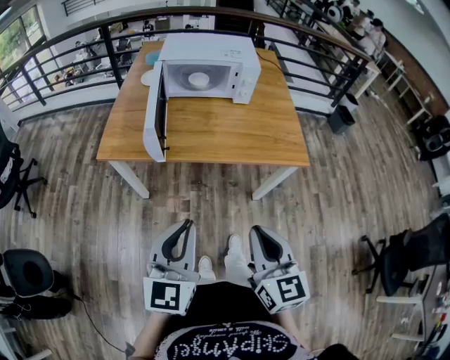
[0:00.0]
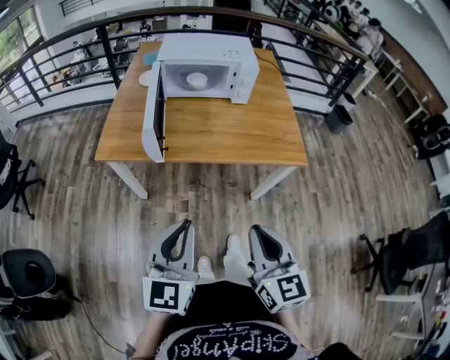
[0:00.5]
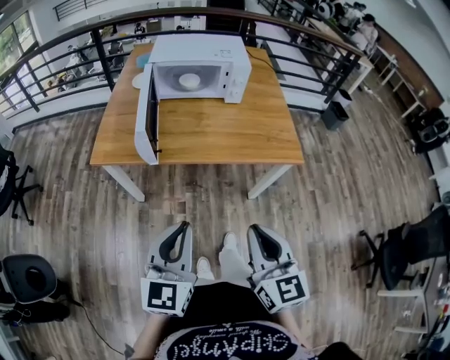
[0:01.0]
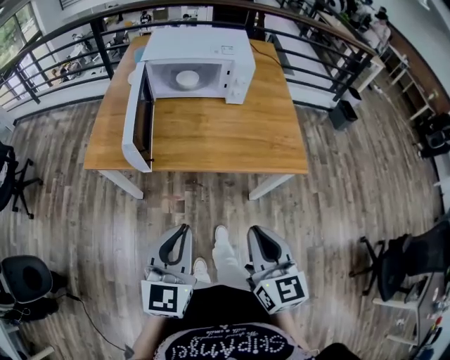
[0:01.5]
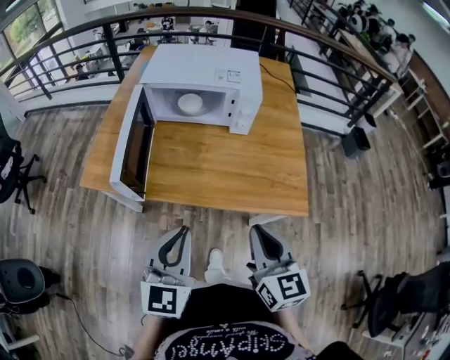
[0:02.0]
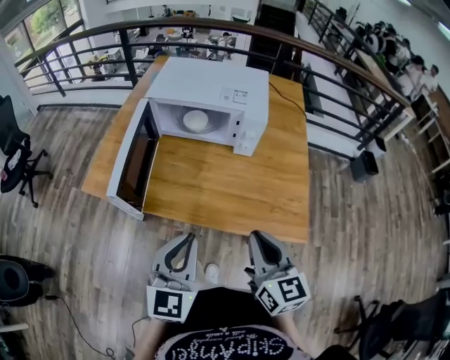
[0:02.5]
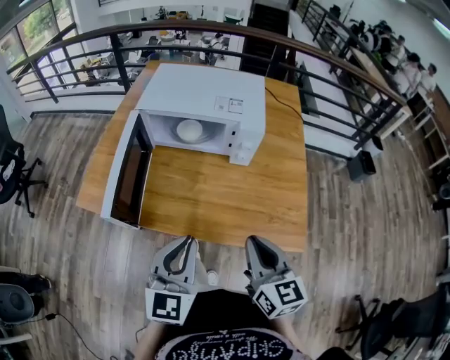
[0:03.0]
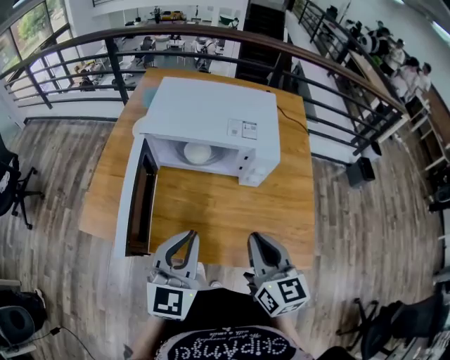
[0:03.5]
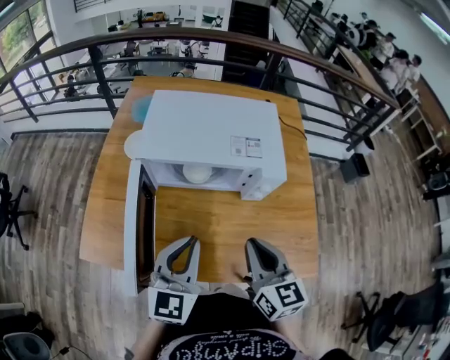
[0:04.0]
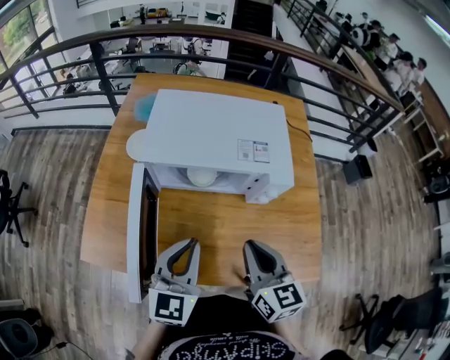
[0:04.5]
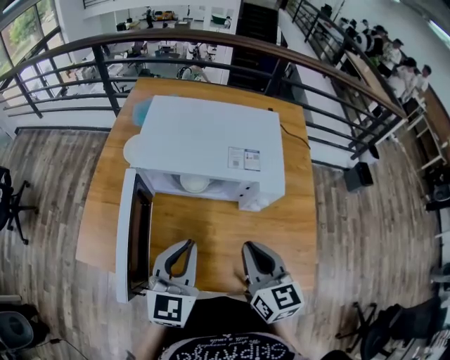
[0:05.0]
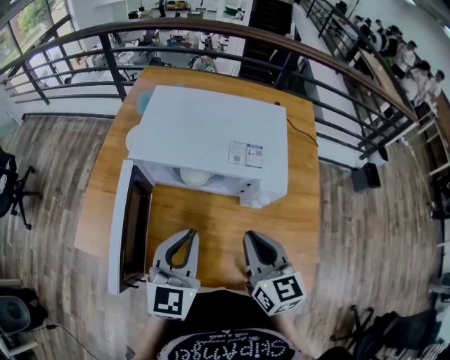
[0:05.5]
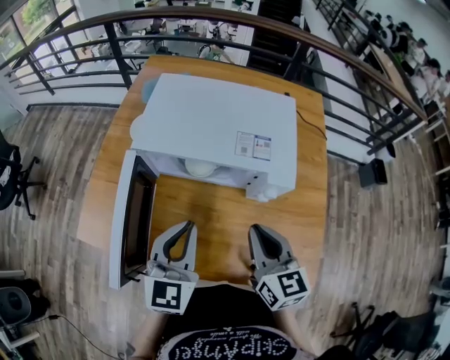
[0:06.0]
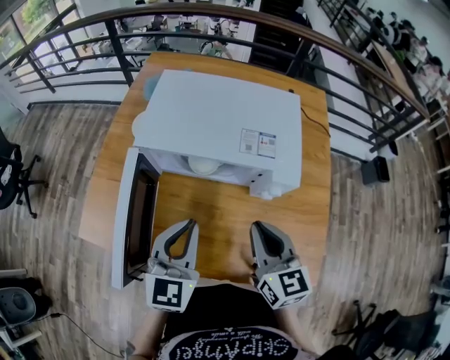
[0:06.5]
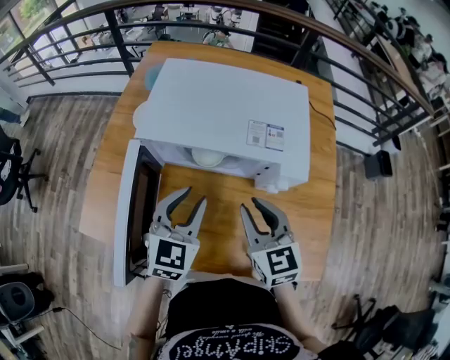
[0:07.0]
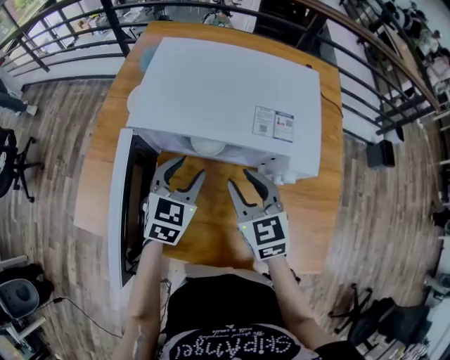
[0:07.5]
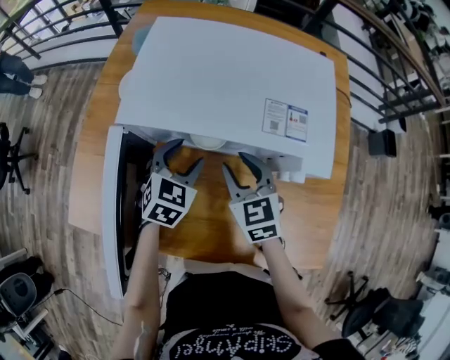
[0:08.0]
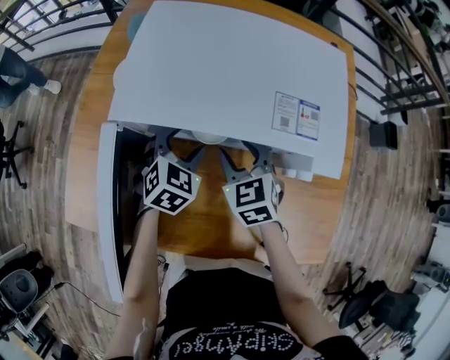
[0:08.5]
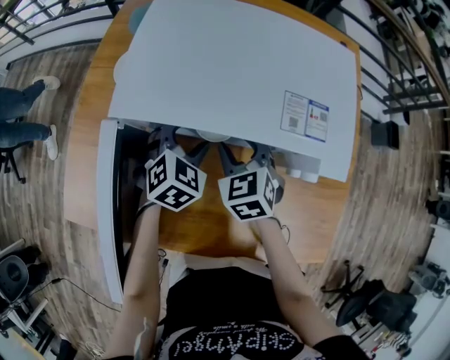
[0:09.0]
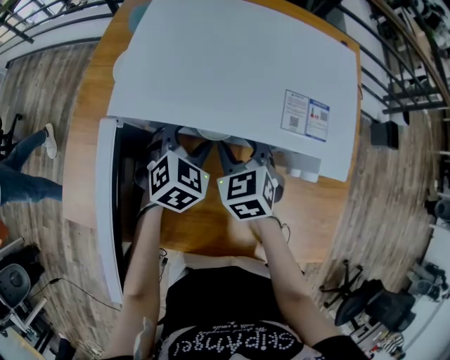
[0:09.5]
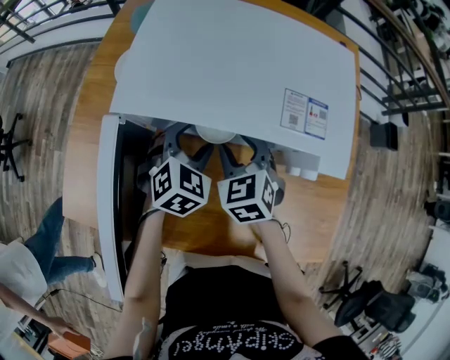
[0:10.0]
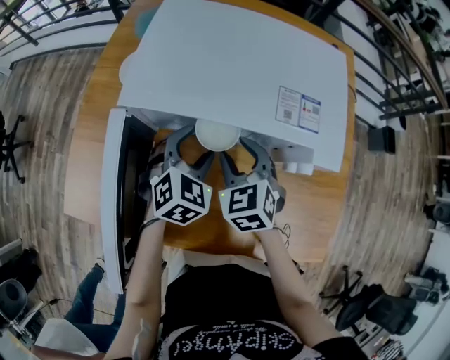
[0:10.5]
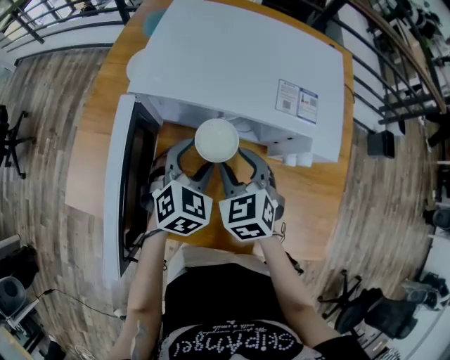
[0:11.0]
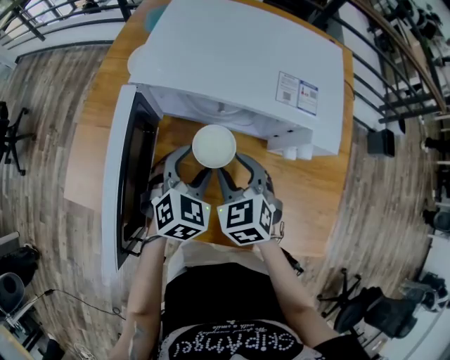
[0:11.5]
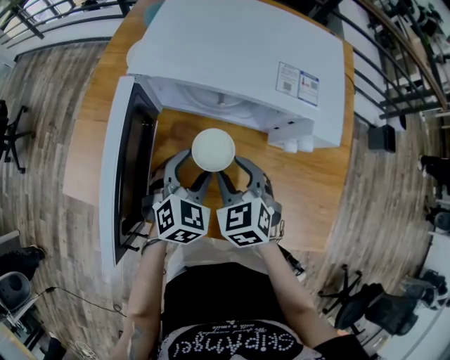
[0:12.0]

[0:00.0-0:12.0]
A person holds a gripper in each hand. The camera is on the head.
0:00.0 to 0:02.0: The right gripper travels forward by approximately 20 cm, while the left gripper goes some 20 cm forward and to the right.
0:02.0 to 0:04.0: Both grippers travel together forward, about 25 cm.
0:04.0 to 0:06.0: The right gripper heads forward, covering about 5 cm.
0:06.0 to 0:08.0: The left gripper goes about 25 cm downward and forward, rotates roughly 30 degrees, and opens. The right gripper travels forward, downward and to the left by approximately 20 cm, rotates some 20 degrees, and opens.
0:08.0 to 0:10.0: The grippers make only small movements.
0:10.0 to 0:12.0: The two grippers go about 15 cm backward.

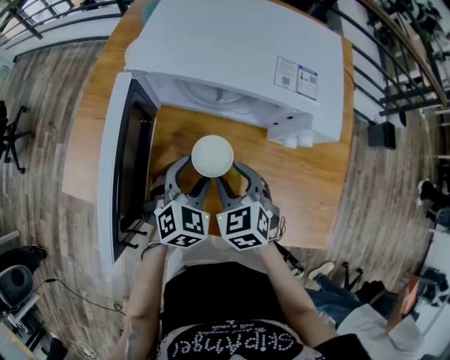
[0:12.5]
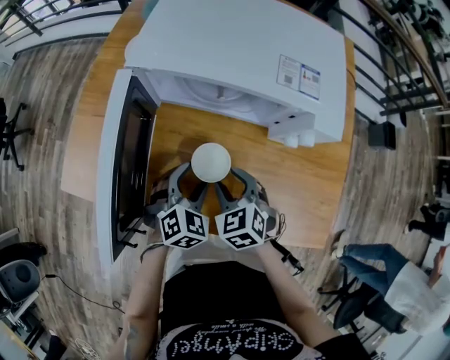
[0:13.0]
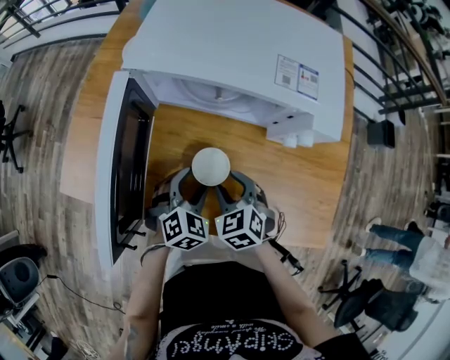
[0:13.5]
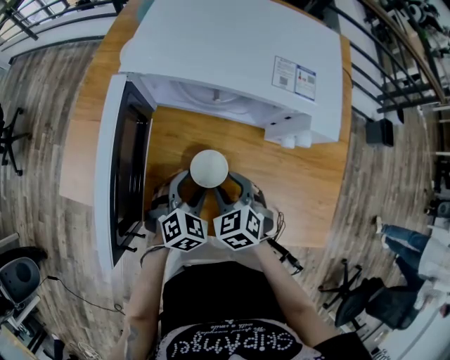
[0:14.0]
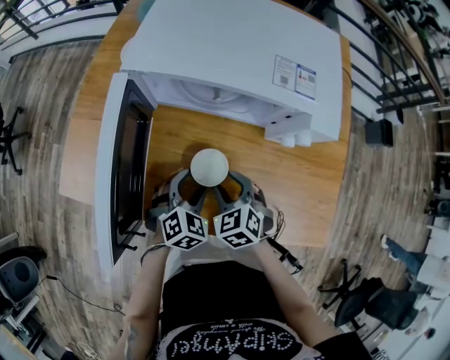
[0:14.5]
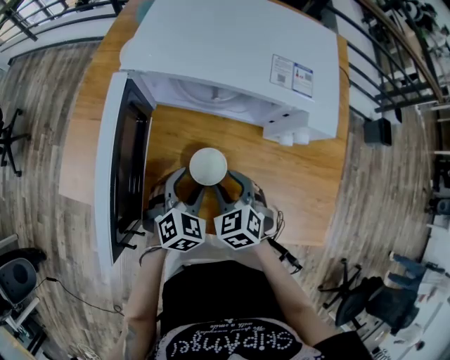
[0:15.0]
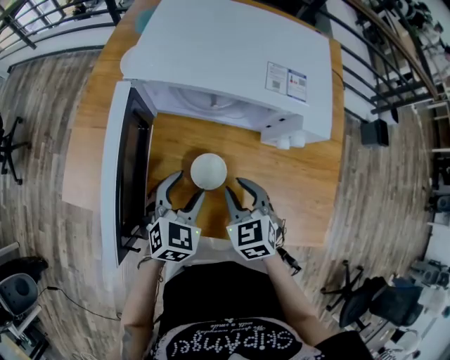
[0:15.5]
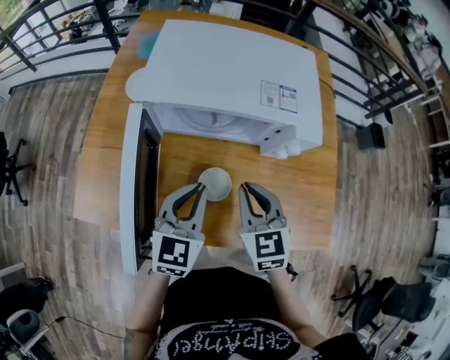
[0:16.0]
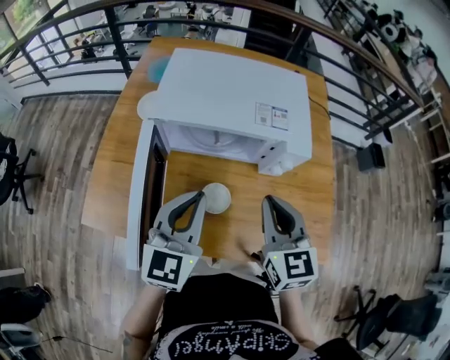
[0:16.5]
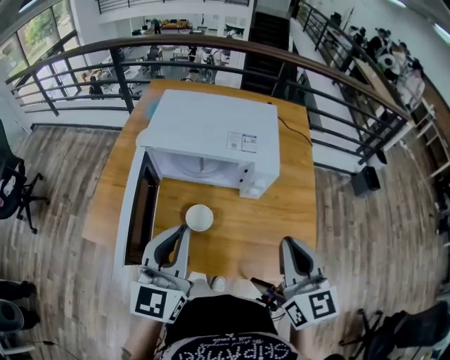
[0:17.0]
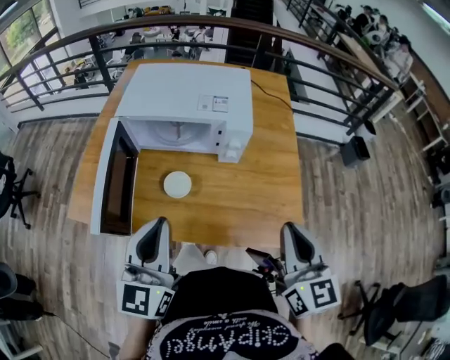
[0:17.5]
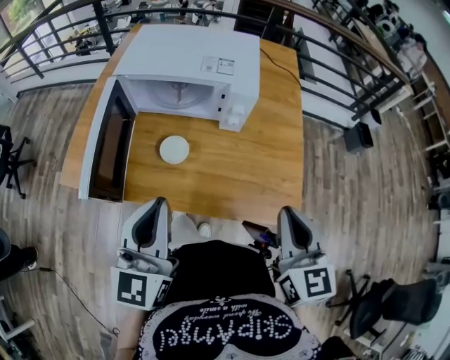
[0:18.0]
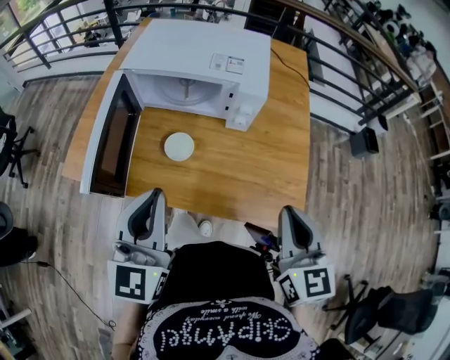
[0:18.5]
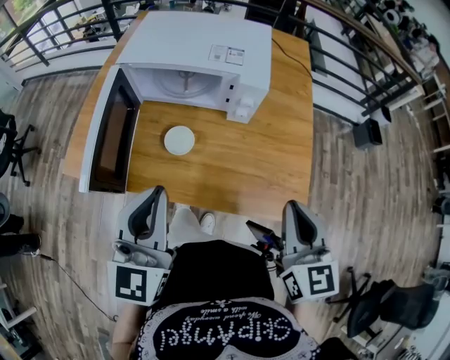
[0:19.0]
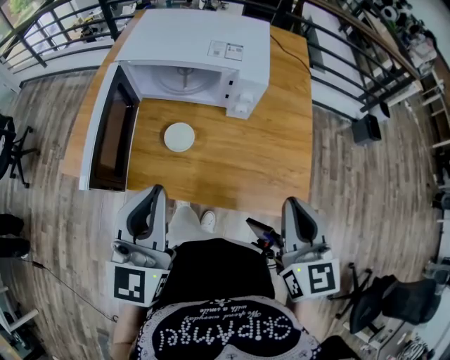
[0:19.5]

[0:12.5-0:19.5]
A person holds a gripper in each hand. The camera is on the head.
0:12.5 to 0:14.5: Both grippers move downward, about 5 cm.
0:14.5 to 0:16.0: Both grippers move upward, some 15 cm. The left gripper points its fingers about 30 degrees further upward, and closes, while the right gripper turns by some 30 degrees, and closes.
0:16.0 to 0:17.5: The left gripper goes roughly 20 cm upward and backward, and swivels some 20 degrees. Meanwhile the right gripper heads to the right, backward and upward, covering roughly 30 cm, and changes its angle by some 30 degrees.
0:17.5 to 0:19.5: The grippers move only a little.

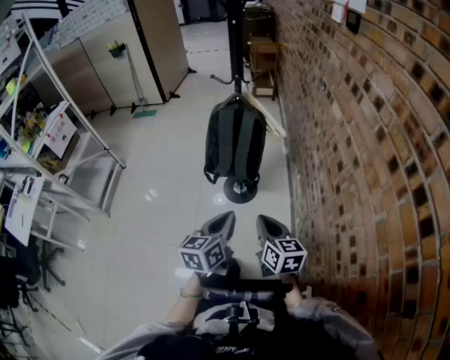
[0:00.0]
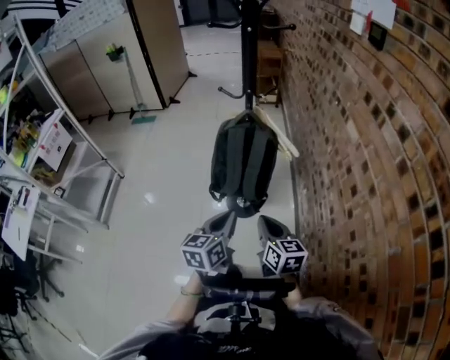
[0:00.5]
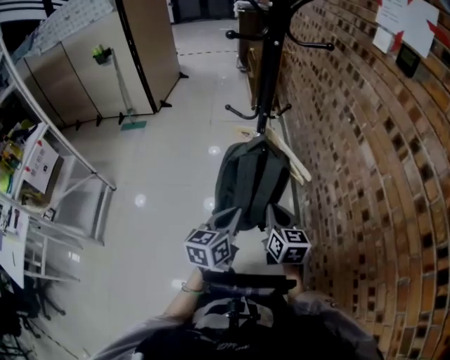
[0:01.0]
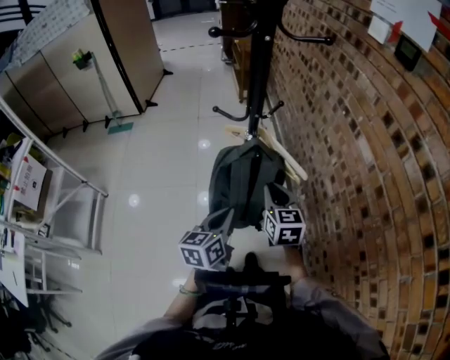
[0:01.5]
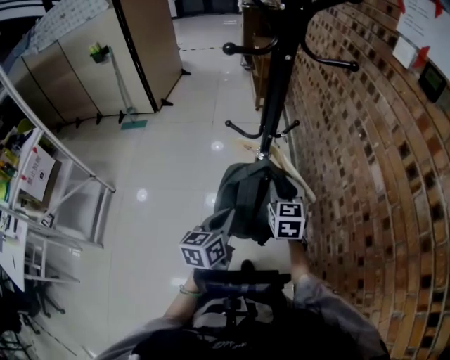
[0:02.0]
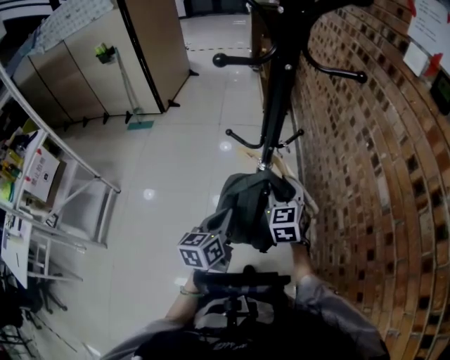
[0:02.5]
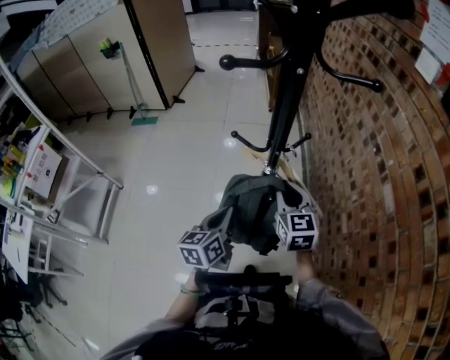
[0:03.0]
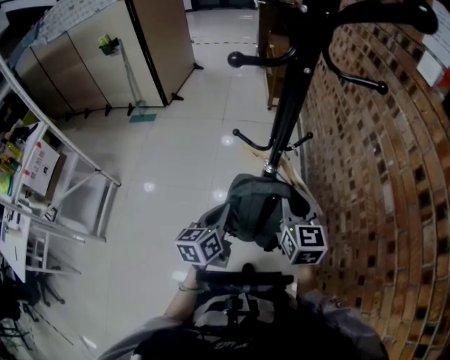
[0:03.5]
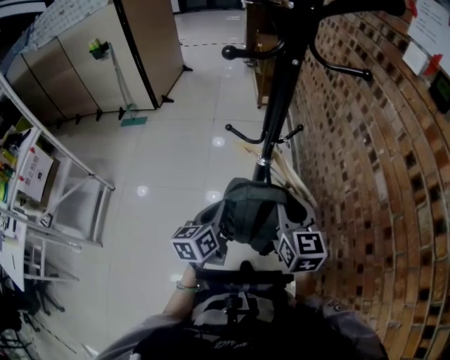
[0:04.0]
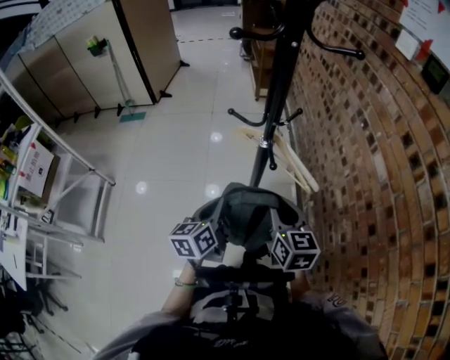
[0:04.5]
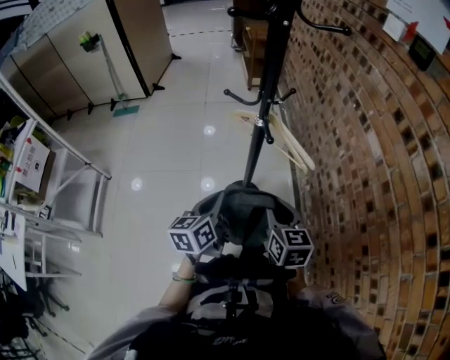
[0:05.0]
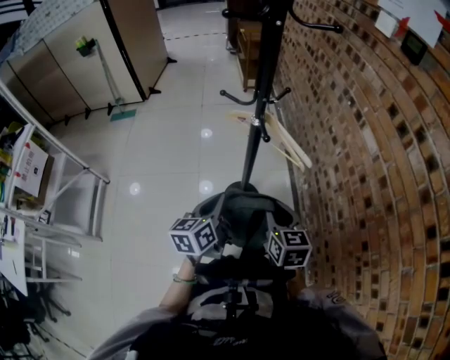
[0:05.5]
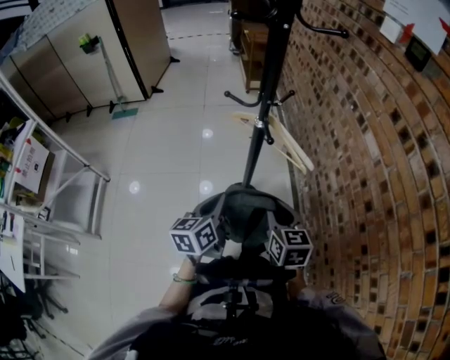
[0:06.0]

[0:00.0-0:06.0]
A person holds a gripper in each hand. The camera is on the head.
0:00.0 to 0:02.0: The two grippers go roughly 35 cm forward. The right gripper swivels about 30 degrees, and opens up.
0:02.0 to 0:04.0: The right gripper is displaced upward and backward by some 10 cm; the left gripper changes place by about 5 cm.
0:04.0 to 0:06.0: The right gripper heads backward and downward, covering about 15 cm, while the left gripper is displaced backward by approximately 10 cm.

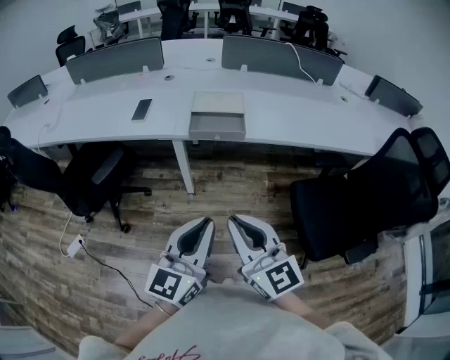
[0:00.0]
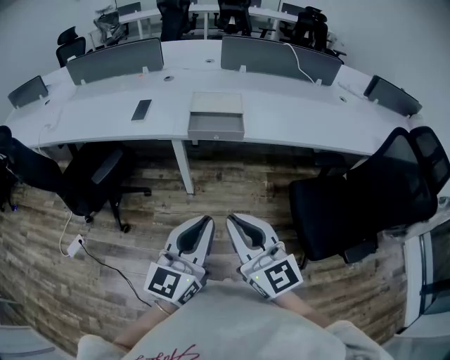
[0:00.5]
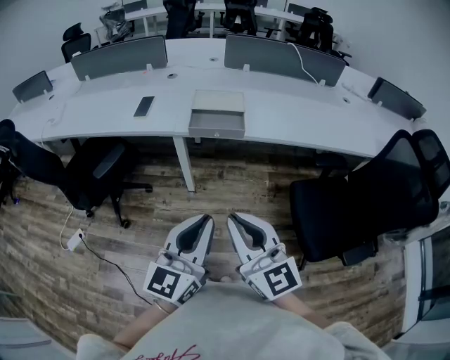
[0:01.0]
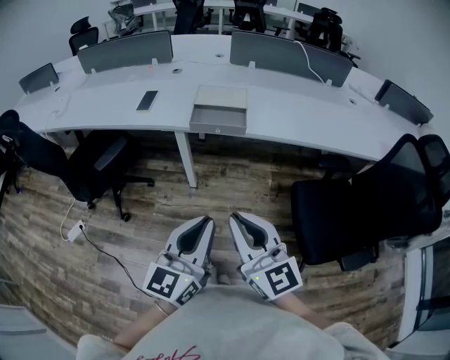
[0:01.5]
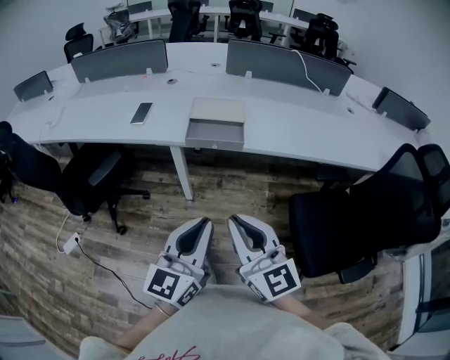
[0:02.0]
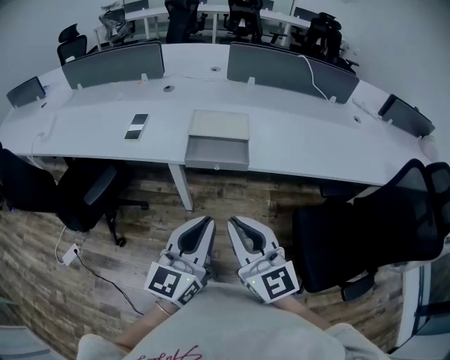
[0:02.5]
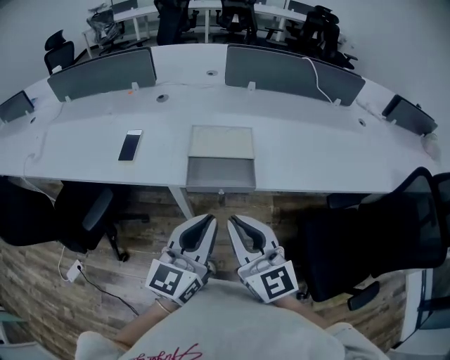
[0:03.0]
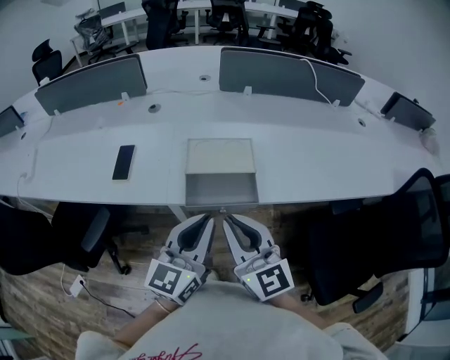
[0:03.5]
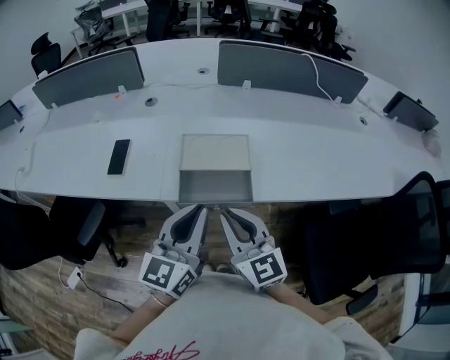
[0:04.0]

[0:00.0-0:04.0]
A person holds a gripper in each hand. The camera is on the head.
0:00.0 to 0:02.0: The right gripper shifts by roughly 5 cm.
0:02.0 to 0:04.0: The grippers both shift forward by approximately 30 cm.
